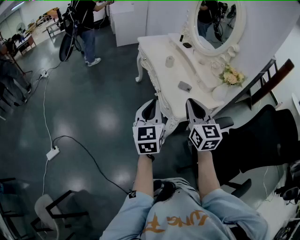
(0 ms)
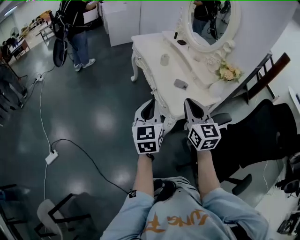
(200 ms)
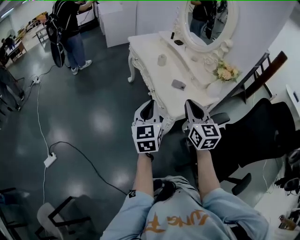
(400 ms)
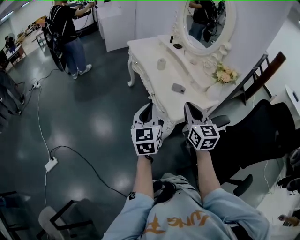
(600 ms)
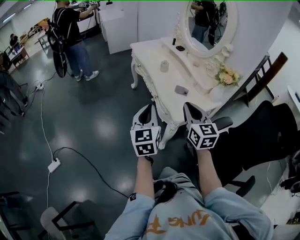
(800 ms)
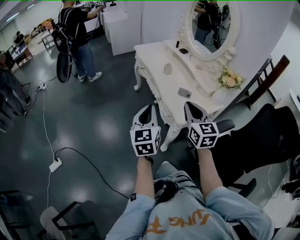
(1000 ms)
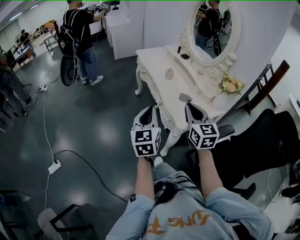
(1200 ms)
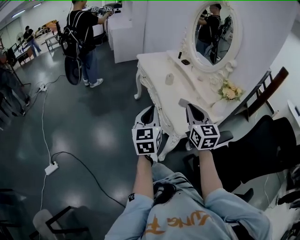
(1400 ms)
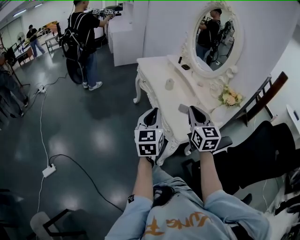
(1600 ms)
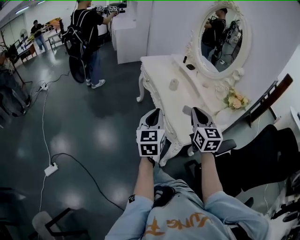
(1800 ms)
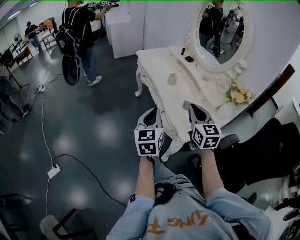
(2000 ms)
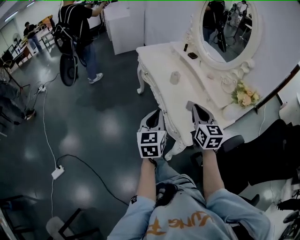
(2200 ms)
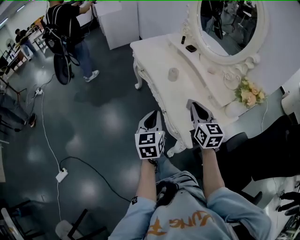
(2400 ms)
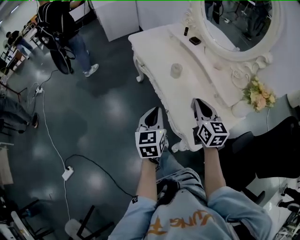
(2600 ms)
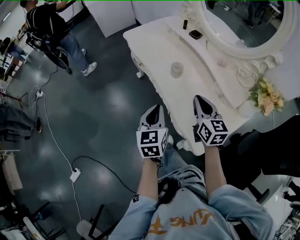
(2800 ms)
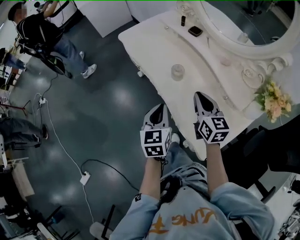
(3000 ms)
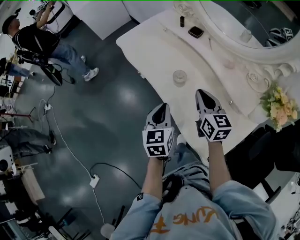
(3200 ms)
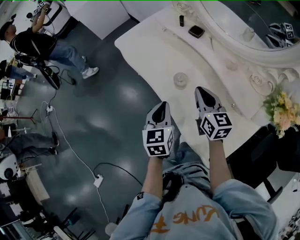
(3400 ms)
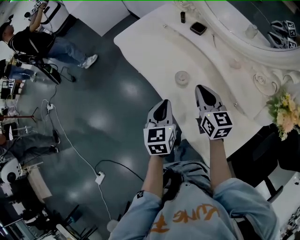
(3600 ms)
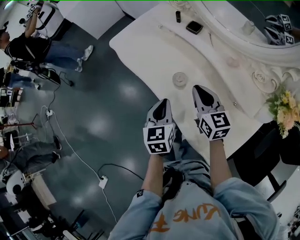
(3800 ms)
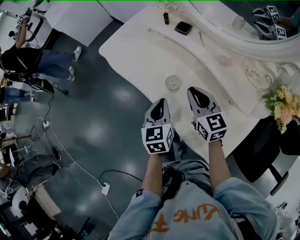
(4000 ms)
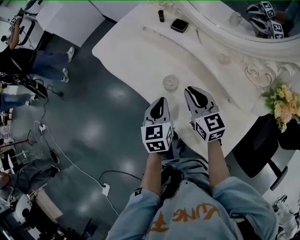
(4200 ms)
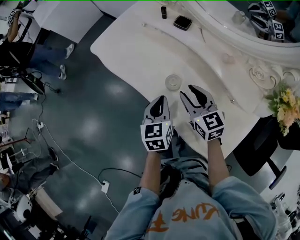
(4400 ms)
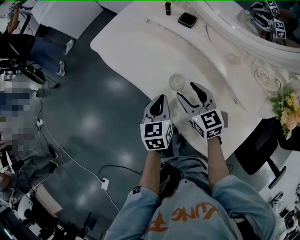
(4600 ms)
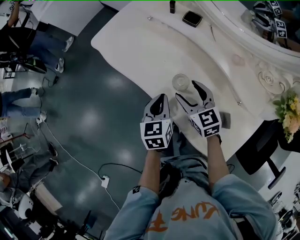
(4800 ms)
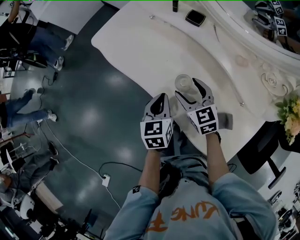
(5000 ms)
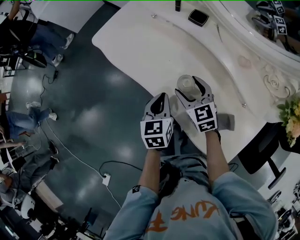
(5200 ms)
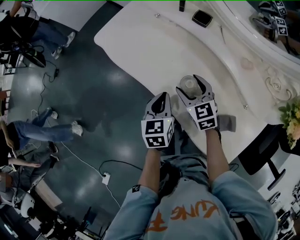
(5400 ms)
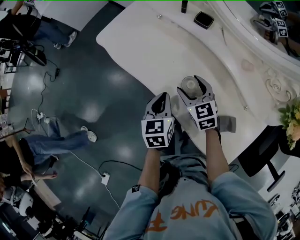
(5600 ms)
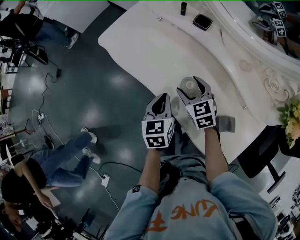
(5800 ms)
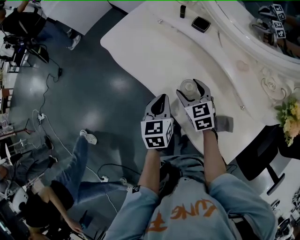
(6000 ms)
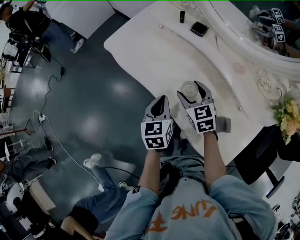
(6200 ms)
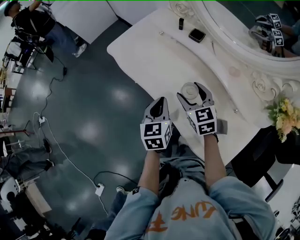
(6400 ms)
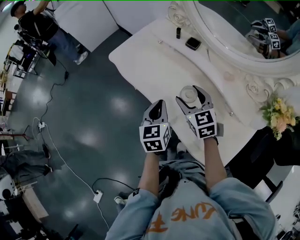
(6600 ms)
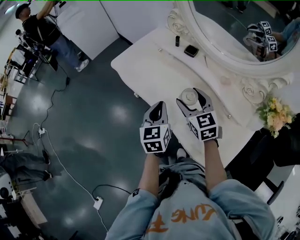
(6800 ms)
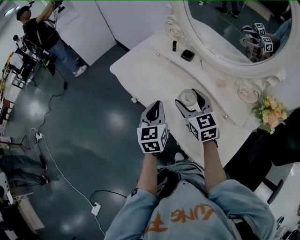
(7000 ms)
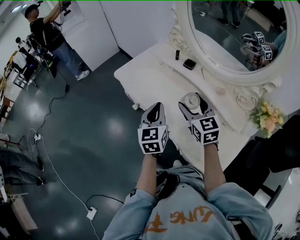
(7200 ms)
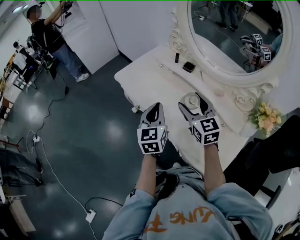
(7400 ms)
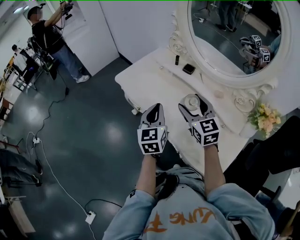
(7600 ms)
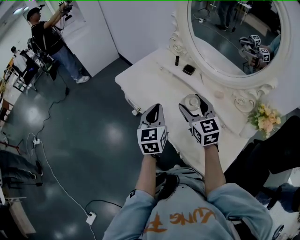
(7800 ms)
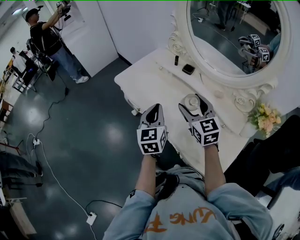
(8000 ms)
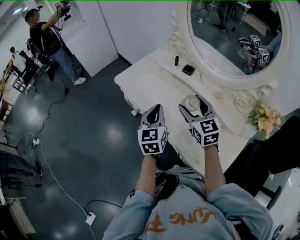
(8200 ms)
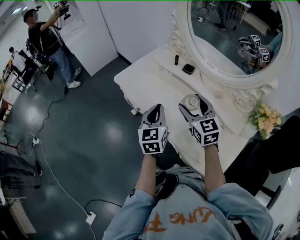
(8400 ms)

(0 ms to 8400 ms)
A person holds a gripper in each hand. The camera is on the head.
0 ms - 1400 ms: Both grippers move forward, about 5 cm.
1400 ms - 2800 ms: The grippers both shift forward and downward by roughly 30 cm. The left gripper rotates some 20 degrees; the right gripper swivels about 20 degrees.
2800 ms - 4200 ms: Both grippers move forward, approximately 15 cm.
4200 ms - 5600 ms: The right gripper moves downward, to the left and forward, roughly 15 cm, and opens up. The left gripper heads to the left, covering about 5 cm.
5600 ms - 7000 ms: Both grippers move upward, approximately 15 cm.
7000 ms - 8400 ms: The grippers stay close to where they were, moving slightly.

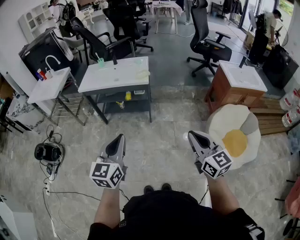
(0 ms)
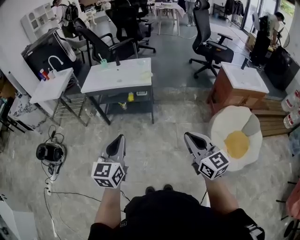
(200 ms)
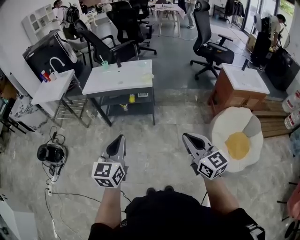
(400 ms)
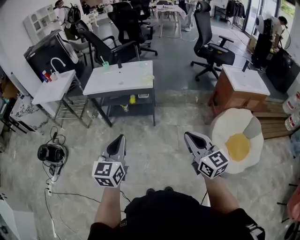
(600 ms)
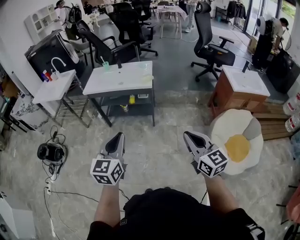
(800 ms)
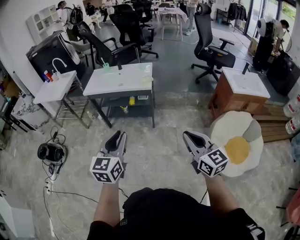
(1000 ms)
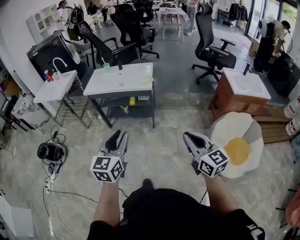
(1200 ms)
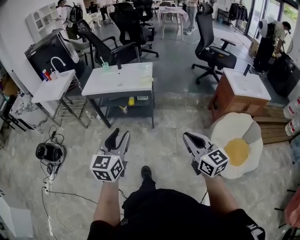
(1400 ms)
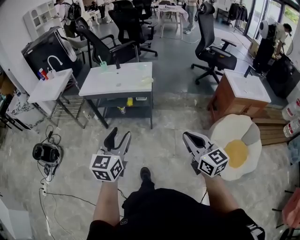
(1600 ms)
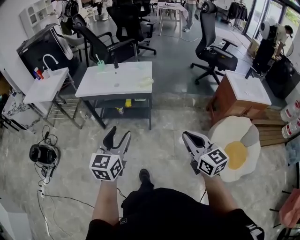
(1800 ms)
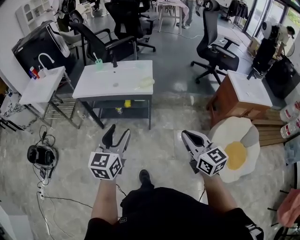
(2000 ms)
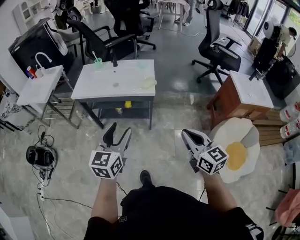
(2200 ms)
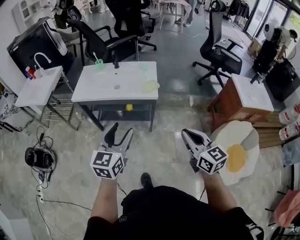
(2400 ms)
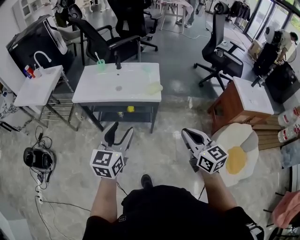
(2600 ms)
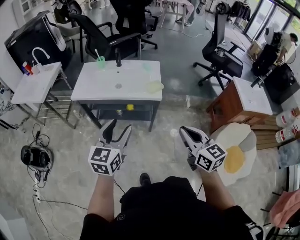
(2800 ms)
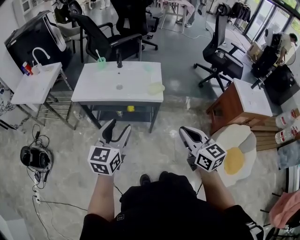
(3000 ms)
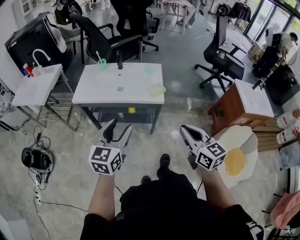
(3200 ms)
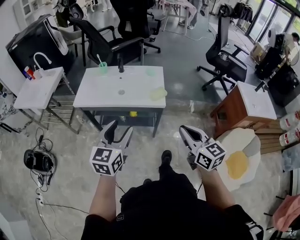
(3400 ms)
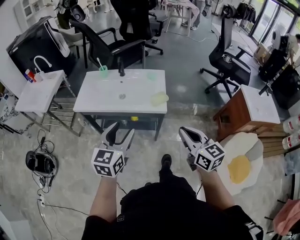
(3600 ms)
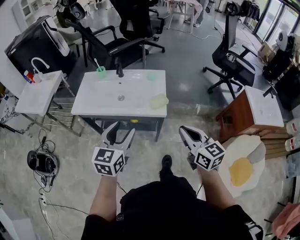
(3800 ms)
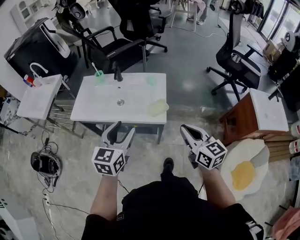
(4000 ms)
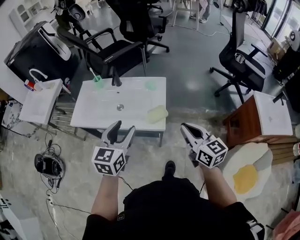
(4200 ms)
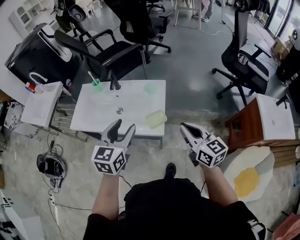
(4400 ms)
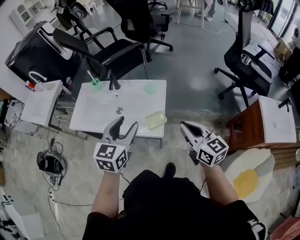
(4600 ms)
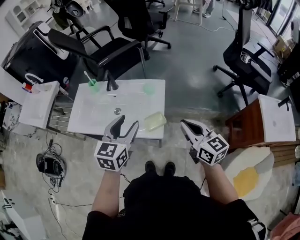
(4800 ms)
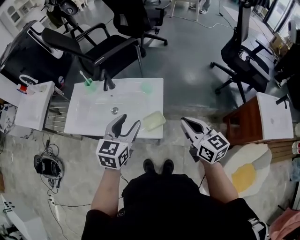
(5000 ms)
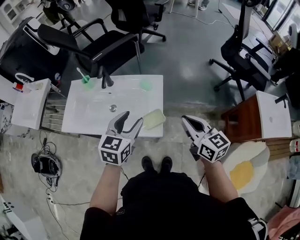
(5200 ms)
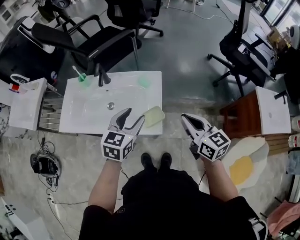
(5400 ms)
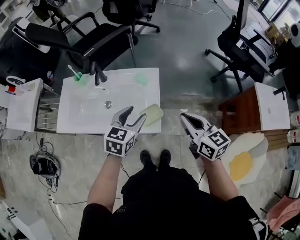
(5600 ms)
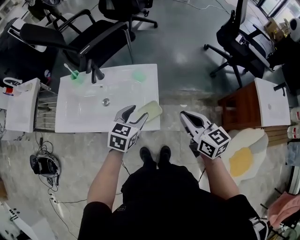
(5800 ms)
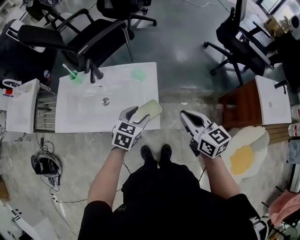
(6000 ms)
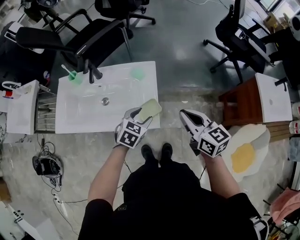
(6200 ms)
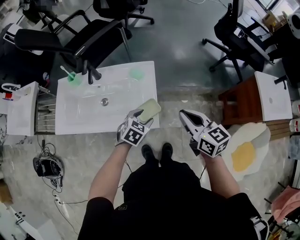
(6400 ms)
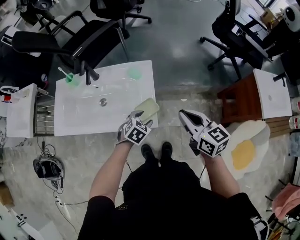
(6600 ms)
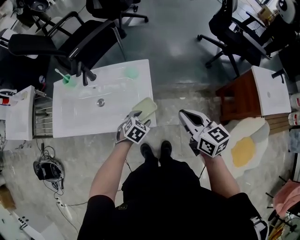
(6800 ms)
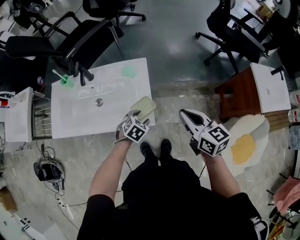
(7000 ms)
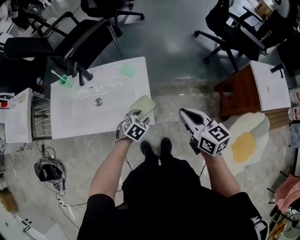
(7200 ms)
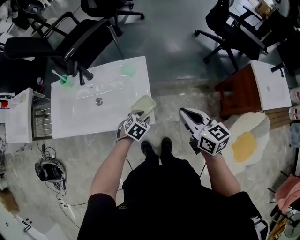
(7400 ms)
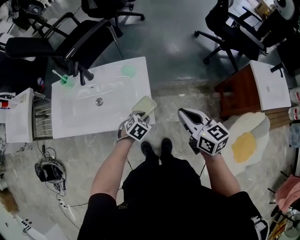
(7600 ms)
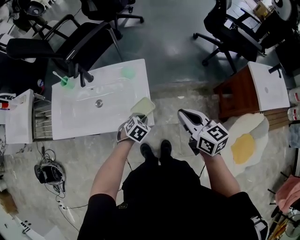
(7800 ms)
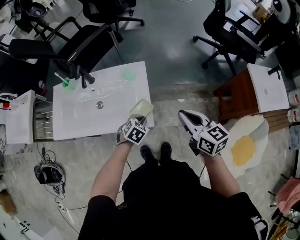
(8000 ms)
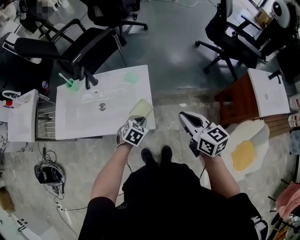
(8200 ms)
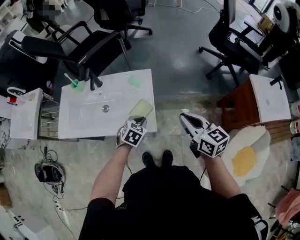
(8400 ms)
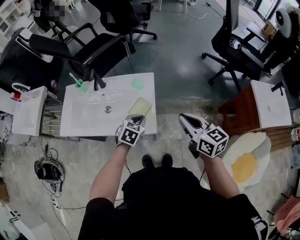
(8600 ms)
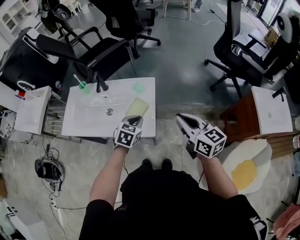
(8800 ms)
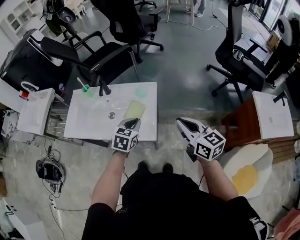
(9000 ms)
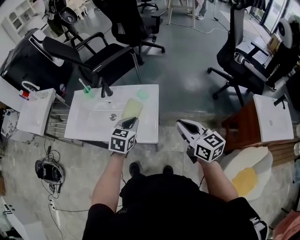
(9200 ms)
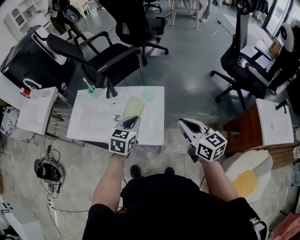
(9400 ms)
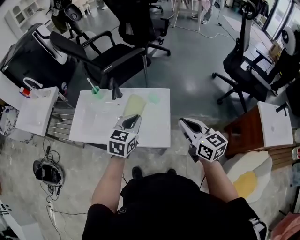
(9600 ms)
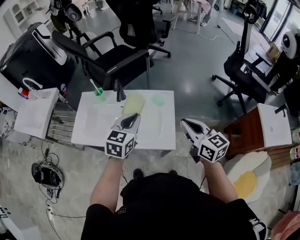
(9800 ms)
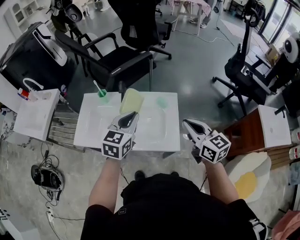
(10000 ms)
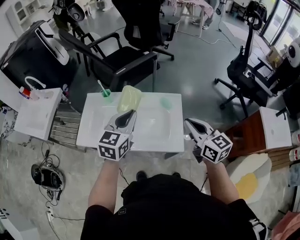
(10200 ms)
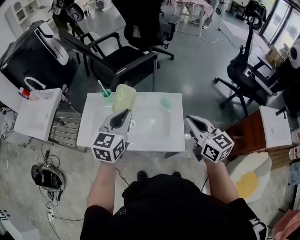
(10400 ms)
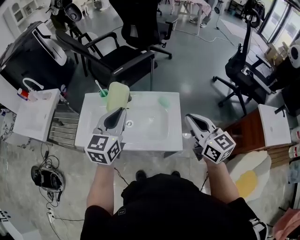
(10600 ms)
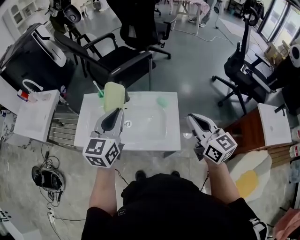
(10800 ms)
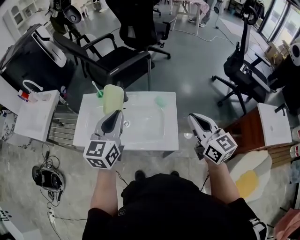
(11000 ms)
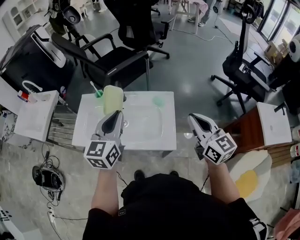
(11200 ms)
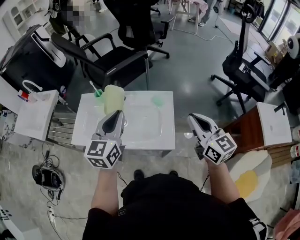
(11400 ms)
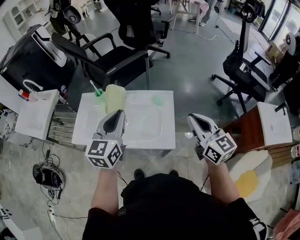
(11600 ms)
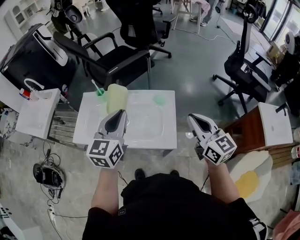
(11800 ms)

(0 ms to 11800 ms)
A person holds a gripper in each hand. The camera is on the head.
0 ms - 1400 ms: The left gripper opens up.
1400 ms - 3000 ms: The left gripper goes approximately 30 cm forward. The right gripper goes approximately 30 cm forward and to the left.
3000 ms - 4400 ms: The two grippers go roughly 30 cm forward and to the right.
4400 ms - 6000 ms: The right gripper travels forward and downward by roughly 10 cm. Meanwhile the left gripper moves downward, forward and to the right, approximately 20 cm, and turns by about 30 degrees.
6000 ms - 7400 ms: The left gripper moves downward, some 15 cm, changes its angle by some 30 degrees, and closes its fingers.
7400 ms - 8800 ms: The left gripper shifts roughly 15 cm upward, turns by about 30 degrees, and closes its fingers. Meanwhile the right gripper heads upward, covering about 5 cm.
8800 ms - 10400 ms: The left gripper moves to the left and upward, some 30 cm, and tips its fingers upward by roughly 30 degrees, while the right gripper moves to the left and forward, some 15 cm.
10400 ms - 11800 ms: The right gripper heads to the right, covering approximately 5 cm, while the left gripper moves roughly 5 cm.

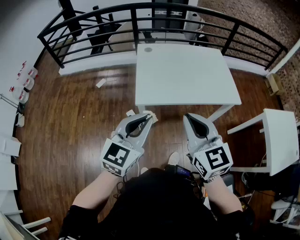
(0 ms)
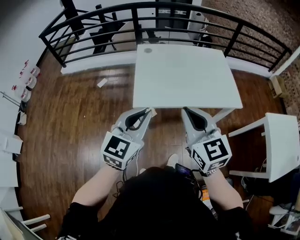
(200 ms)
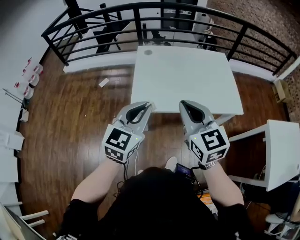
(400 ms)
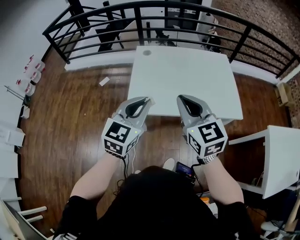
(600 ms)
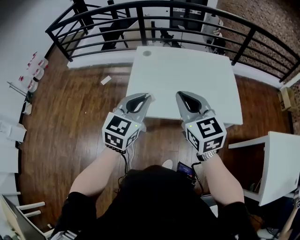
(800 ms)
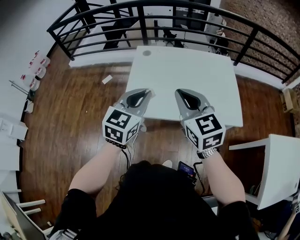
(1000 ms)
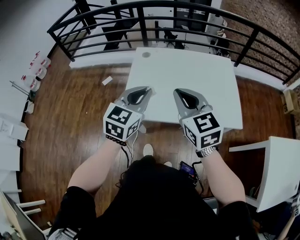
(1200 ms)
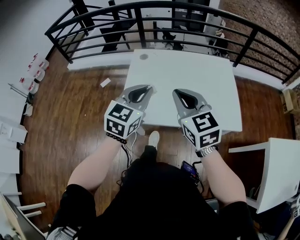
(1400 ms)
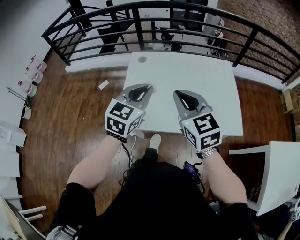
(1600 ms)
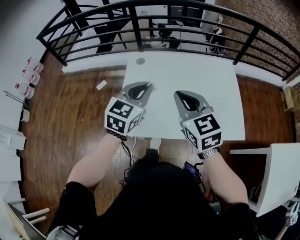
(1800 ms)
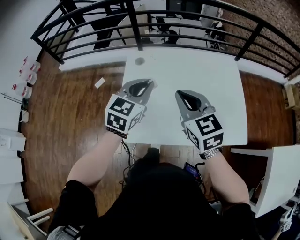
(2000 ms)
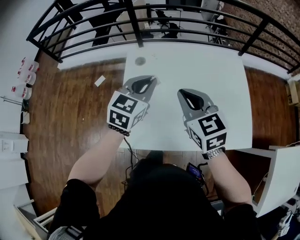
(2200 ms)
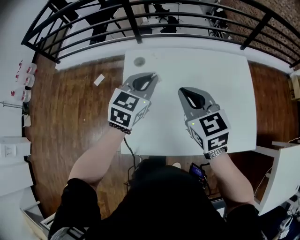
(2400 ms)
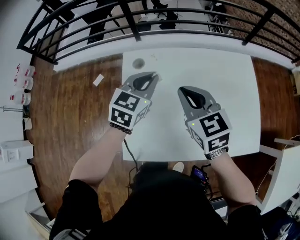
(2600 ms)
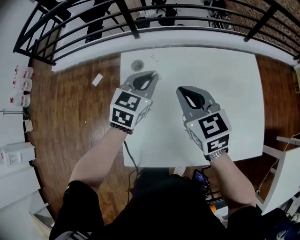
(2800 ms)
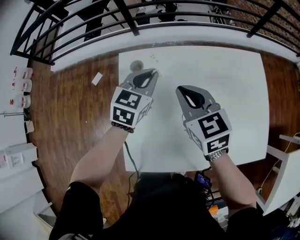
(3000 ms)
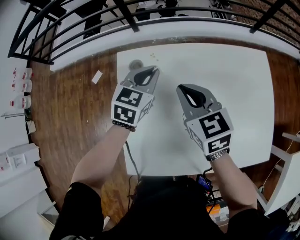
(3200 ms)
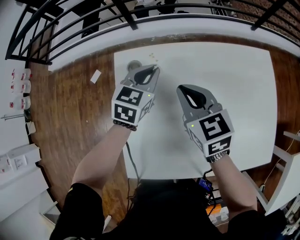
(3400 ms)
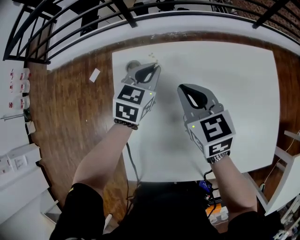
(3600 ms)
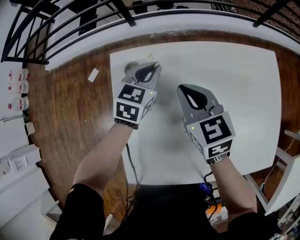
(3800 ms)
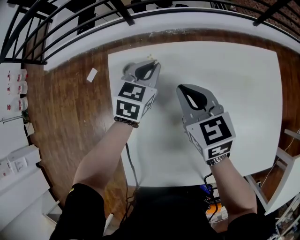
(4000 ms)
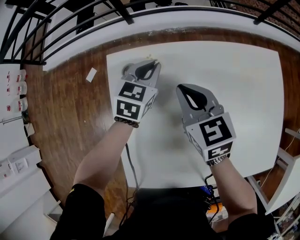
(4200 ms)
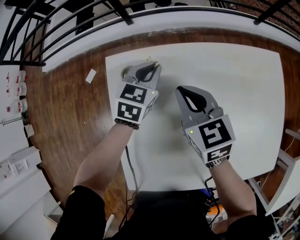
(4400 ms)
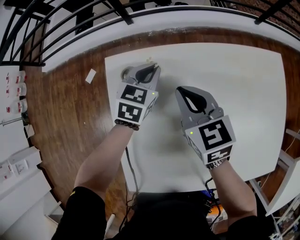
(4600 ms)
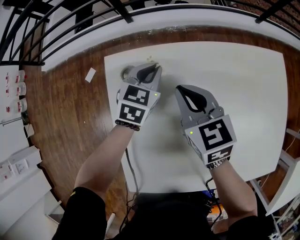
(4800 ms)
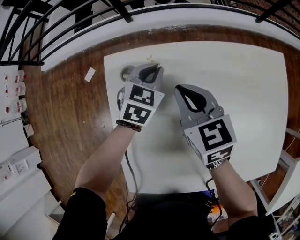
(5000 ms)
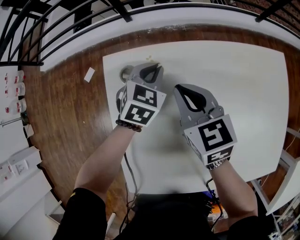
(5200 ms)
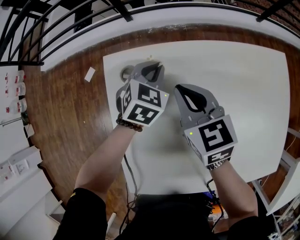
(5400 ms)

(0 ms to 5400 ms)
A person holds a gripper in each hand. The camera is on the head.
0 ms - 1400 ms: The two grippers go roughly 30 cm forward and to the right.
1400 ms - 2800 ms: Both grippers move forward, approximately 35 cm.
2800 ms - 4000 ms: The grippers both shift downward and forward by about 15 cm.
4000 ms - 5400 ms: The left gripper heads downward, covering roughly 5 cm.
